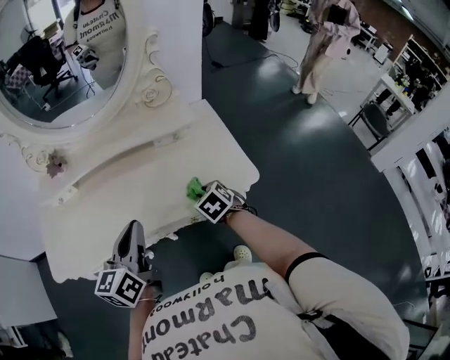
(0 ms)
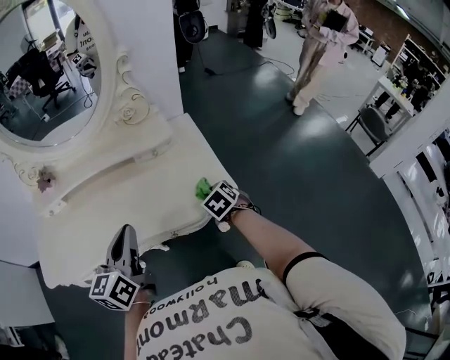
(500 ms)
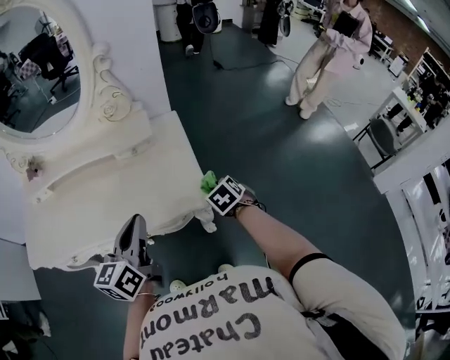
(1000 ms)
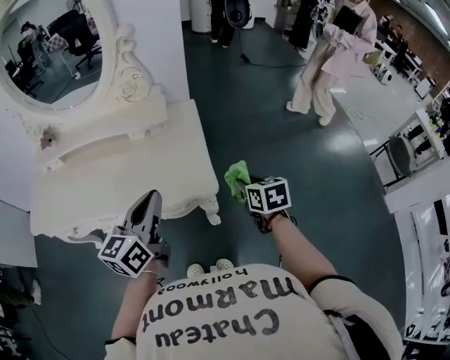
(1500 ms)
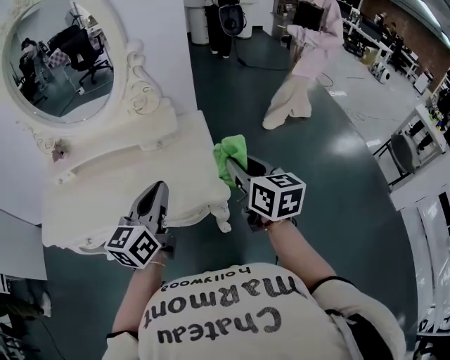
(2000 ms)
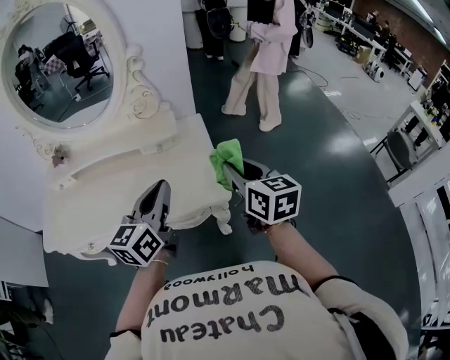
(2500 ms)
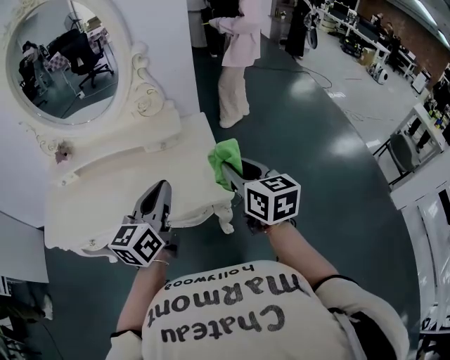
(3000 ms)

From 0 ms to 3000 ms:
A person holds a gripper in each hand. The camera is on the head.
From 0 ms to 1500 ms: The two grippers go approximately 30 cm to the right. The right gripper changes its angle by some 30 degrees.
From 1500 ms to 3000 ms: The right gripper goes some 20 cm upward and to the left, and rotates some 30 degrees. Meanwhile the left gripper ends up some 5 cm from where it was.

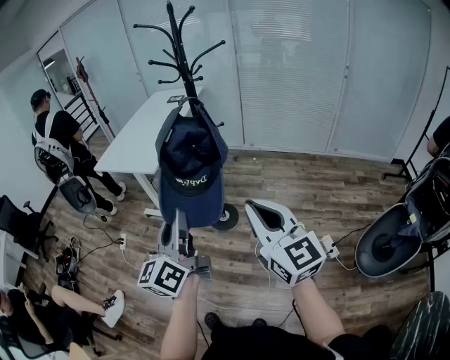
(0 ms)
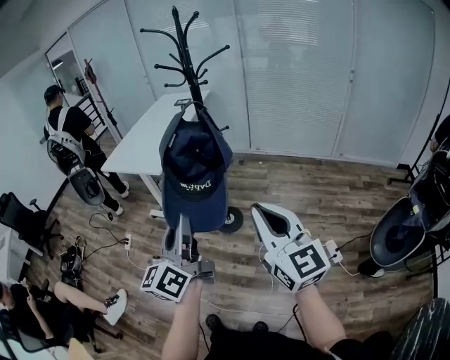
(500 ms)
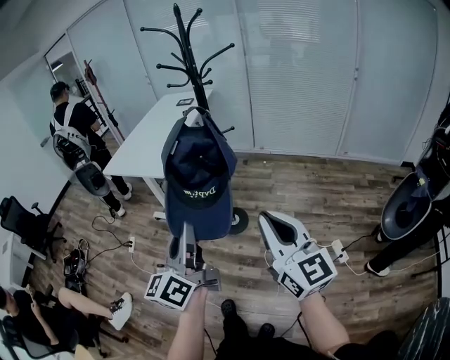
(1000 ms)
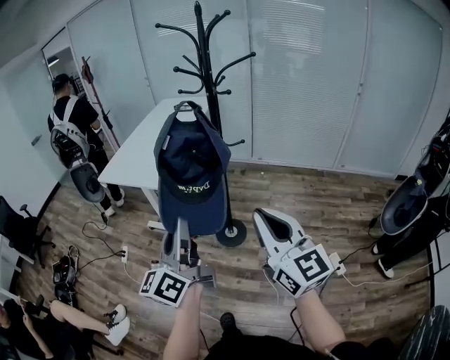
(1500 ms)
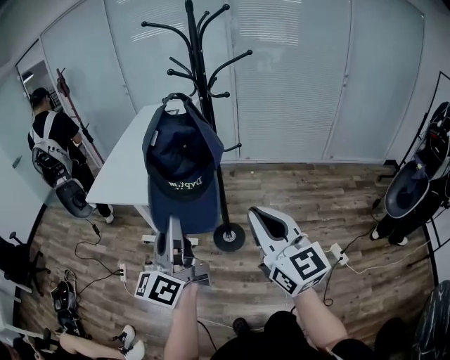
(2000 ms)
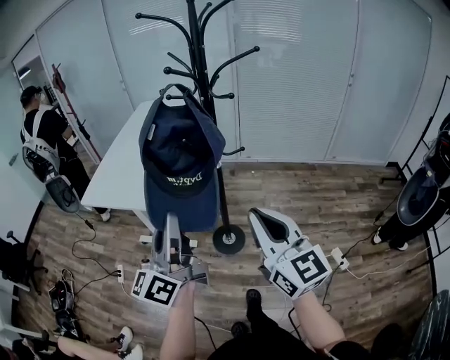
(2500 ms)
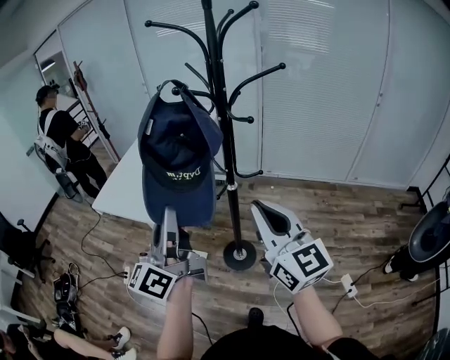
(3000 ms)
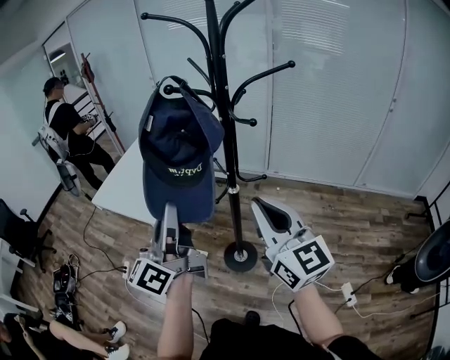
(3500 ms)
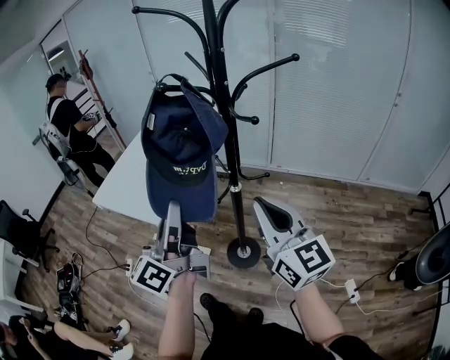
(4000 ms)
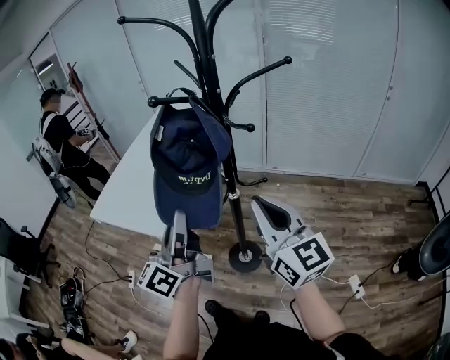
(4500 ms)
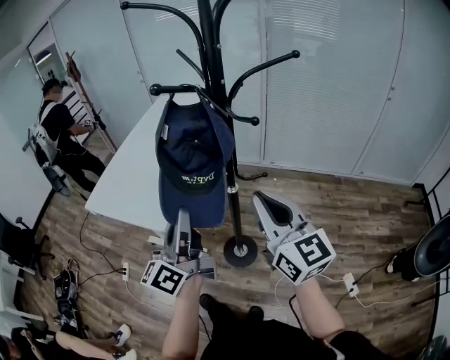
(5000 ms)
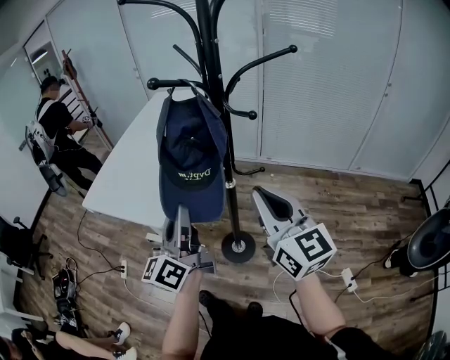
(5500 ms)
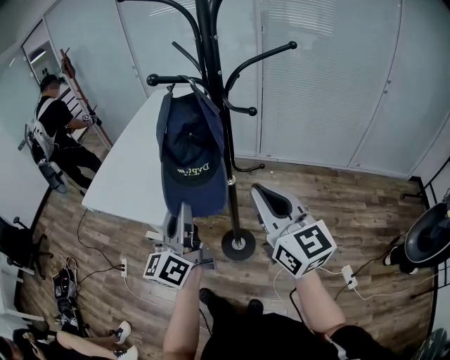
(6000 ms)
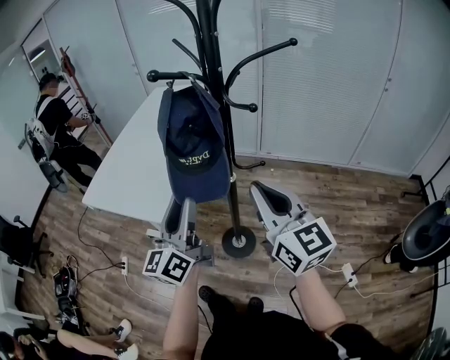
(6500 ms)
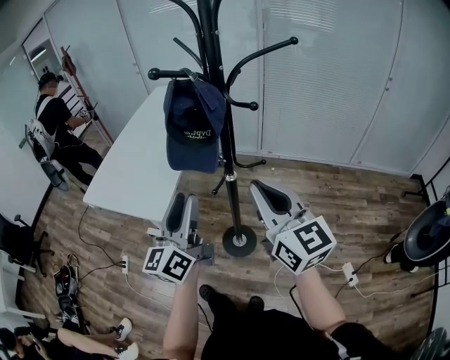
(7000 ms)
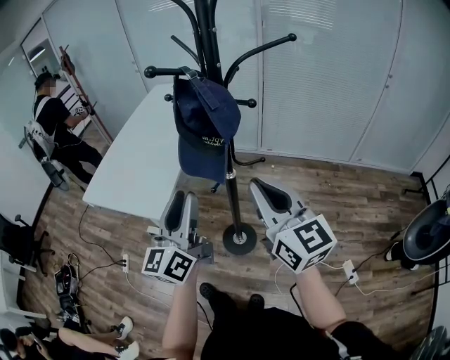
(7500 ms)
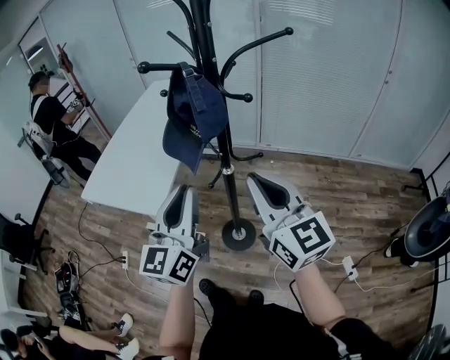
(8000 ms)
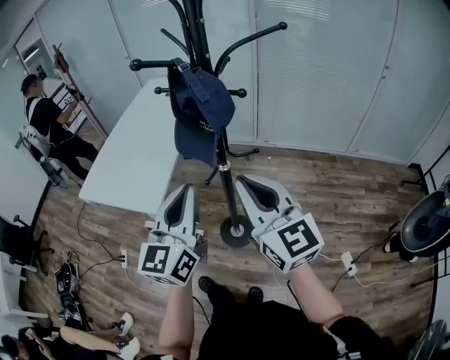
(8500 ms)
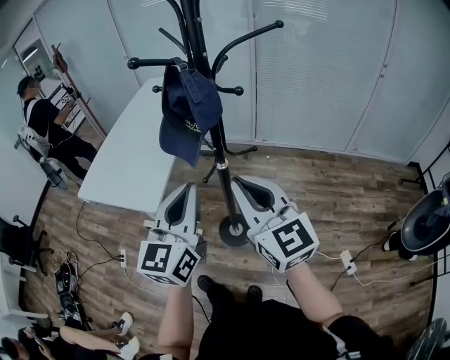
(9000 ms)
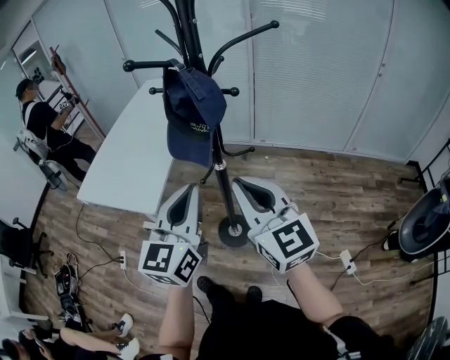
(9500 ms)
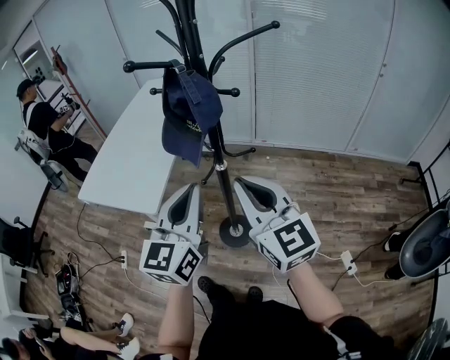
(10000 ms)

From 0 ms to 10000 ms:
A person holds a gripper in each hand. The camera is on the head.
From 0 ms to 2000 ms: Both grippers move forward and to the left, roughly 15 cm.
From 2000 ms to 4000 ms: The grippers both shift forward by approximately 20 cm.
From 4000 ms to 6000 ms: The left gripper is displaced downward by about 5 cm.
From 6000 ms to 8000 ms: The left gripper changes place by roughly 5 cm, swivels about 20 degrees, and opens and closes again.
From 8000 ms to 10000 ms: The grippers move only a little.

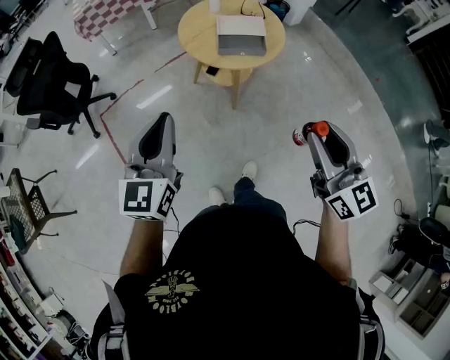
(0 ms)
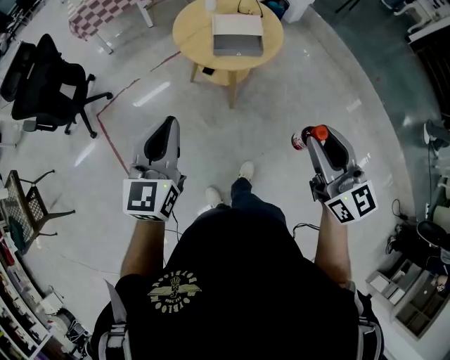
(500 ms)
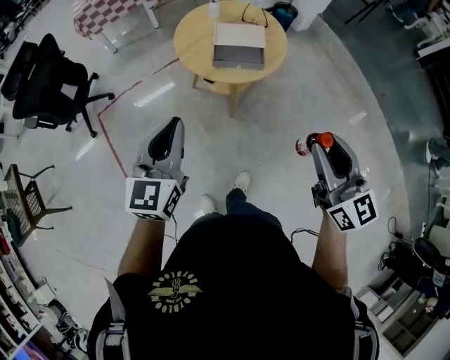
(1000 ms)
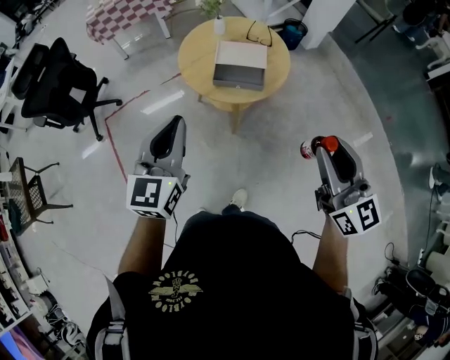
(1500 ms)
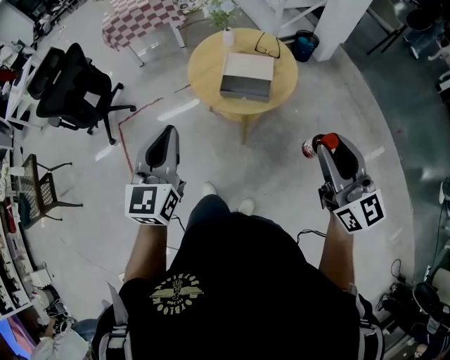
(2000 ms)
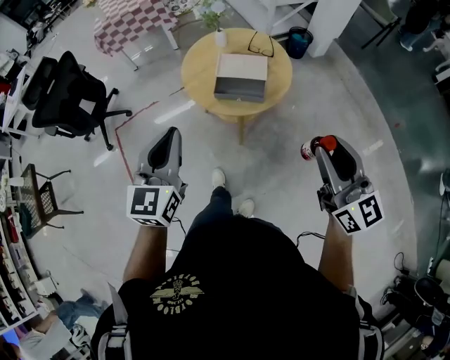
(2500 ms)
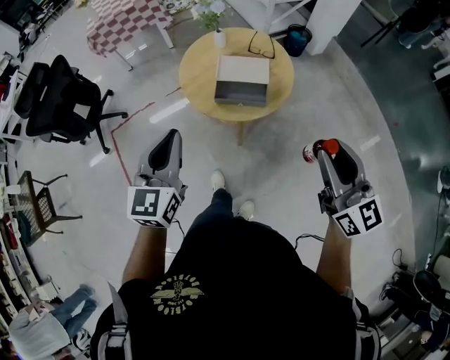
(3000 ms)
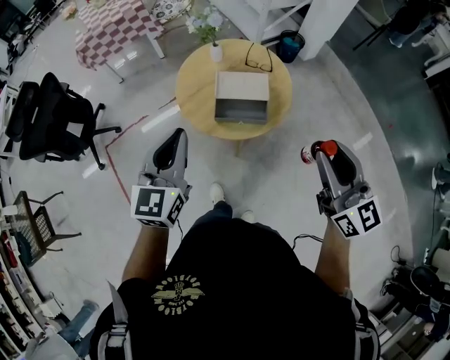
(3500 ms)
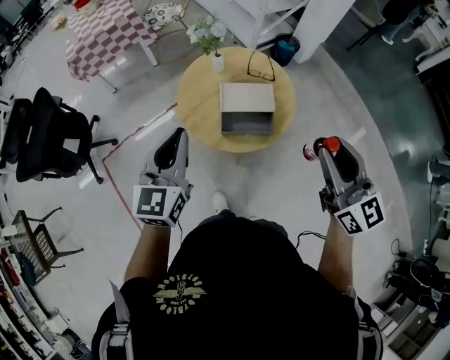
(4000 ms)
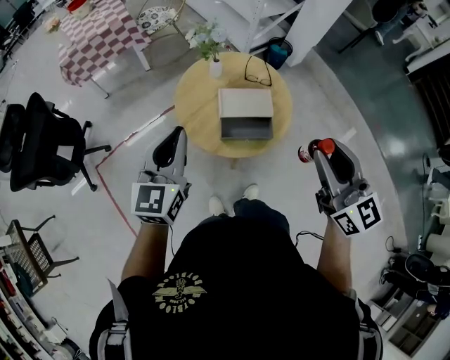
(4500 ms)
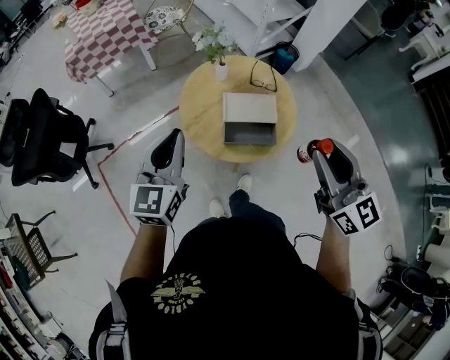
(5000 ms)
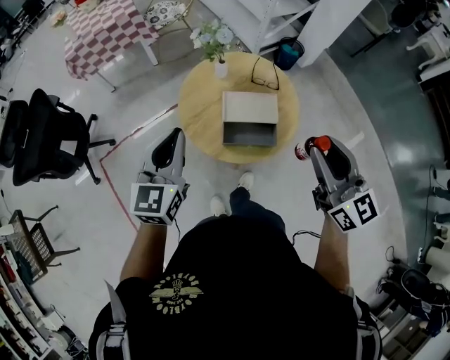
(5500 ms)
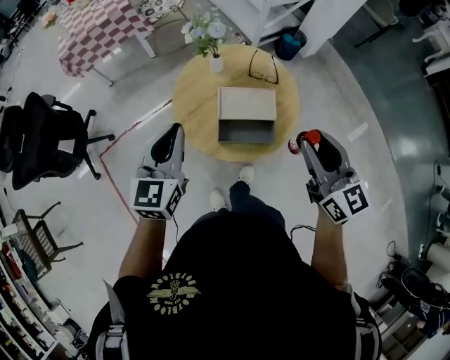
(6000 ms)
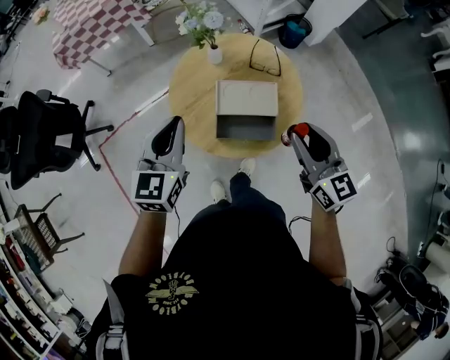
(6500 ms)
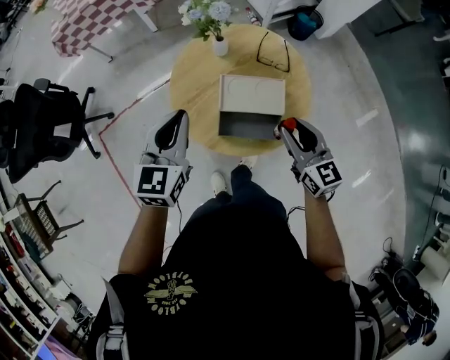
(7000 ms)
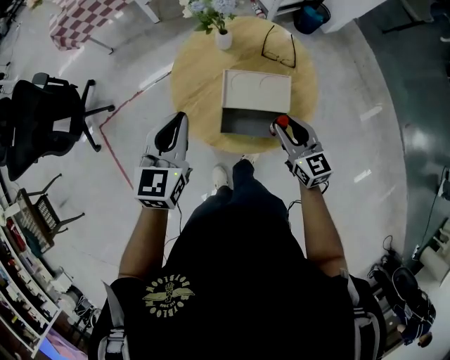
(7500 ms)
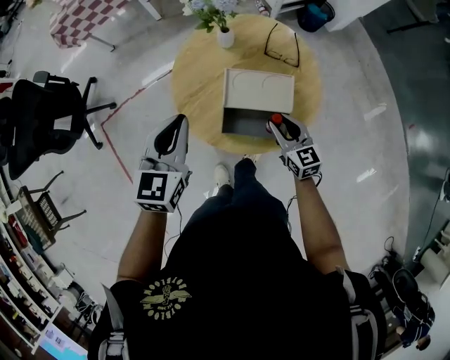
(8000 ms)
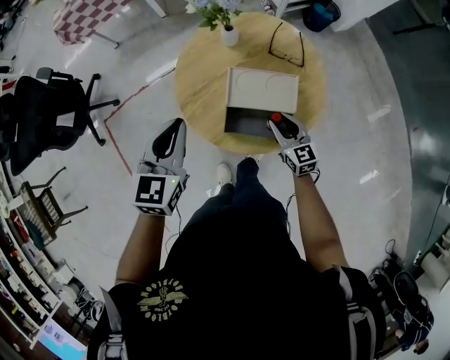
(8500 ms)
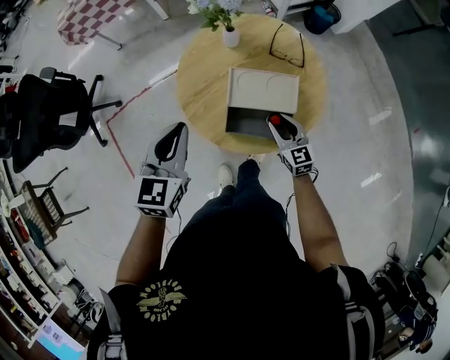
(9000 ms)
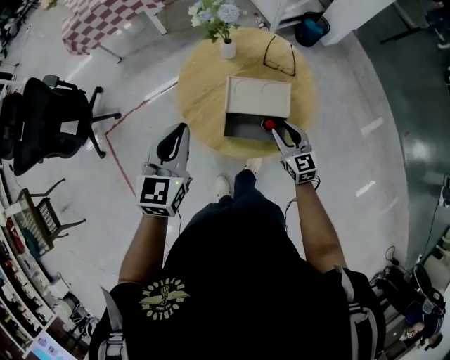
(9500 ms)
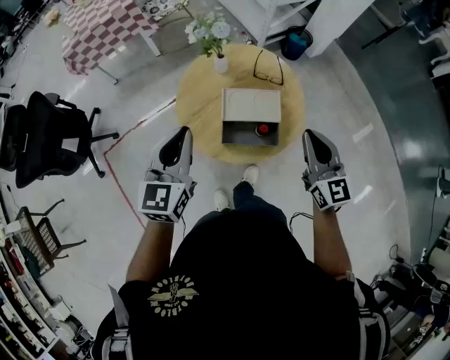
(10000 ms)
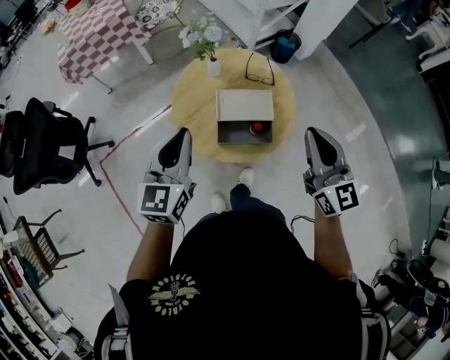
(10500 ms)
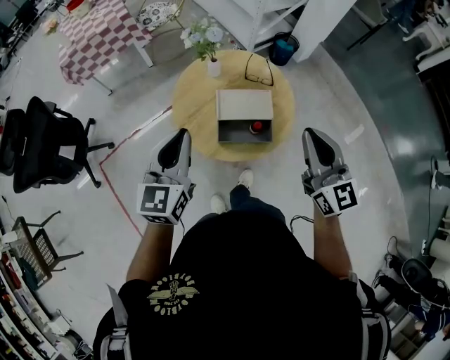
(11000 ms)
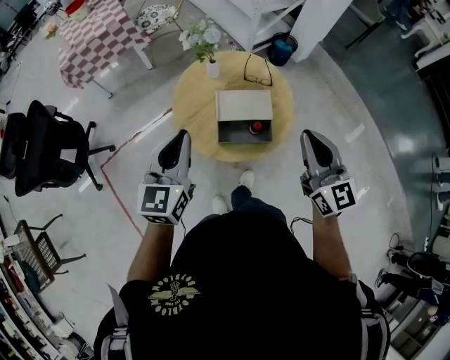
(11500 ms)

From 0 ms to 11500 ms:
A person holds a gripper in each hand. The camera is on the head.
From 0 ms to 2000 ms: Both grippers move to the right and forward, some 20 cm.
From 2000 ms to 4000 ms: The right gripper shifts roughly 20 cm forward and to the left. Meanwhile the left gripper travels forward by roughly 25 cm.
From 4000 ms to 6000 ms: The right gripper moves forward and downward, roughly 15 cm; the left gripper goes approximately 10 cm forward.
From 6000 ms to 7500 ms: The right gripper moves downward and forward, some 25 cm. The left gripper heads downward and forward, covering some 10 cm.
From 7500 ms to 9500 ms: The right gripper goes roughly 5 cm downward.
From 9500 ms to 11500 ms: The left gripper goes some 10 cm upward and backward. Meanwhile the right gripper goes roughly 30 cm upward, turns by roughly 20 degrees, and closes its fingers.

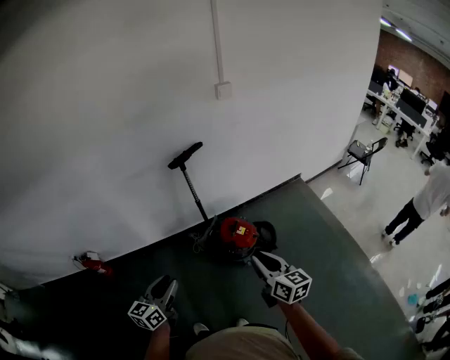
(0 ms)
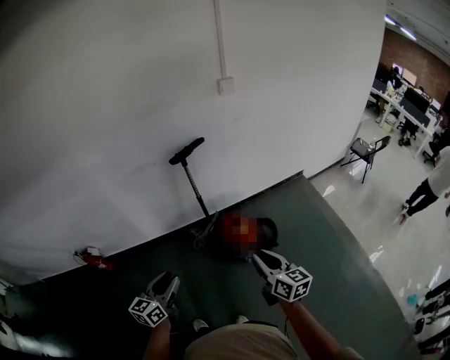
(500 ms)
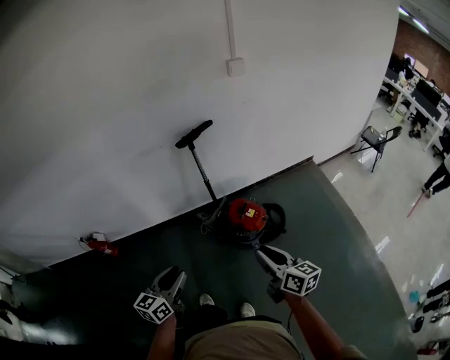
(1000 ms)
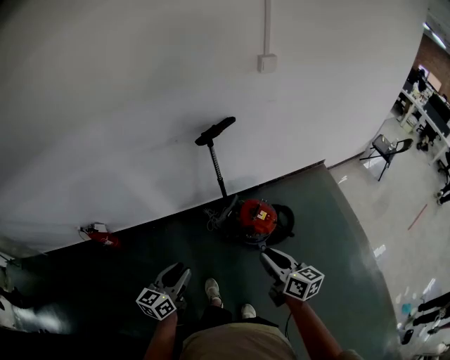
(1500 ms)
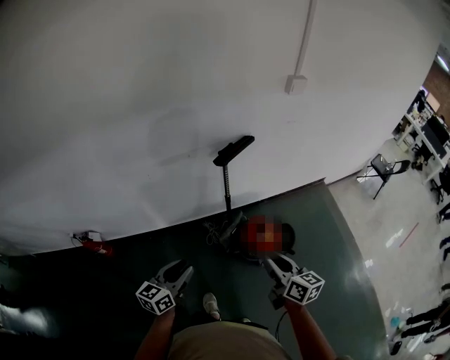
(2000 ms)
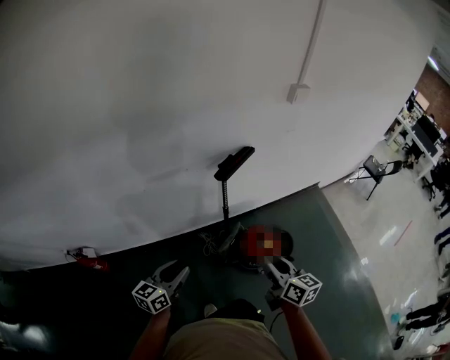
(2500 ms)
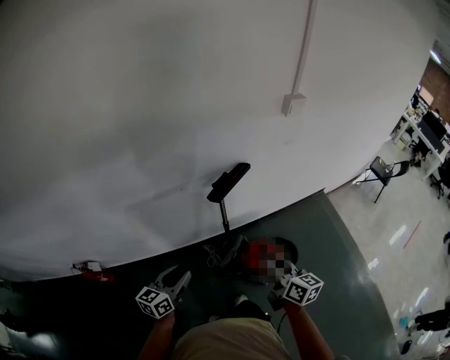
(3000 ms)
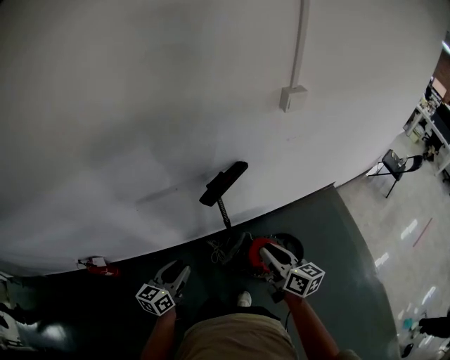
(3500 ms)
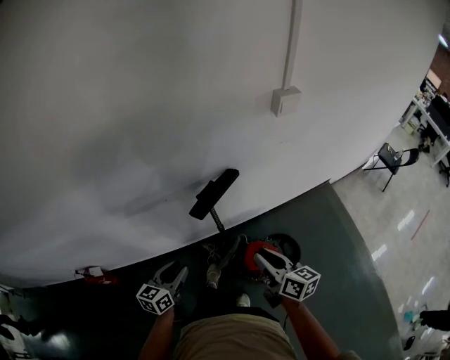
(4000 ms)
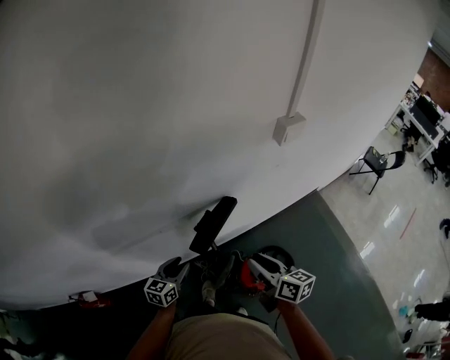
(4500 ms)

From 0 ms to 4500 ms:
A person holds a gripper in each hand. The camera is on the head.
From 0 ms to 2000 ms: Both grippers move forward and to the left, some 25 cm.
From 2000 ms to 4500 ms: The two grippers go approximately 40 cm forward.
